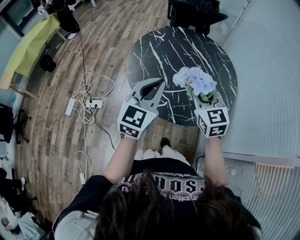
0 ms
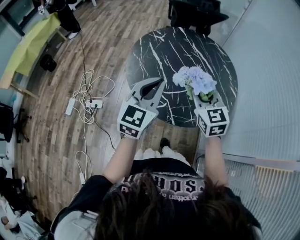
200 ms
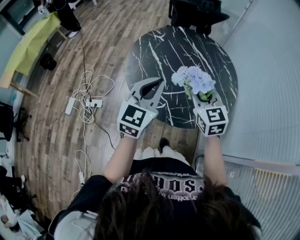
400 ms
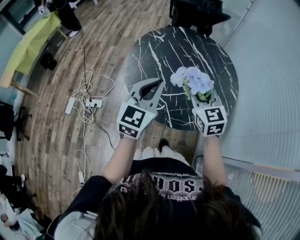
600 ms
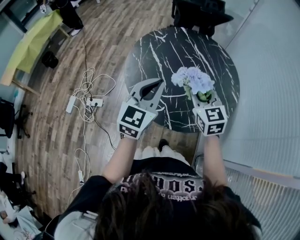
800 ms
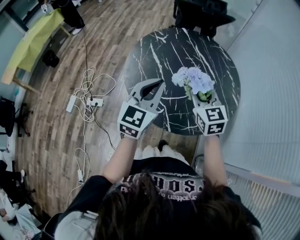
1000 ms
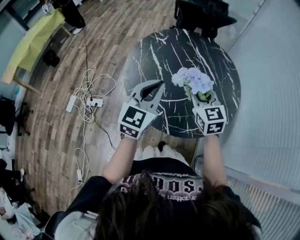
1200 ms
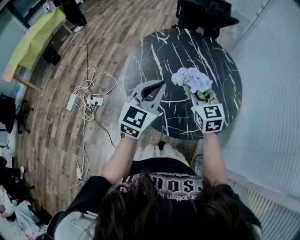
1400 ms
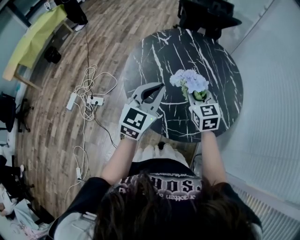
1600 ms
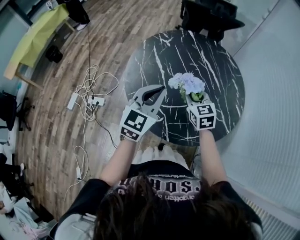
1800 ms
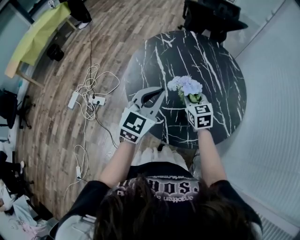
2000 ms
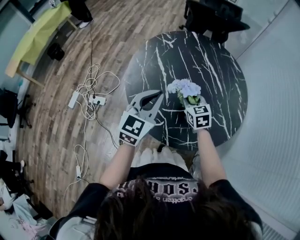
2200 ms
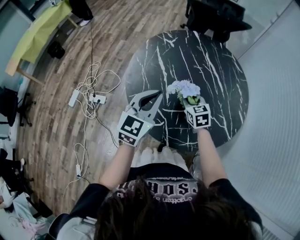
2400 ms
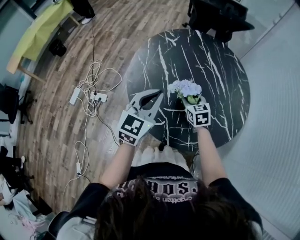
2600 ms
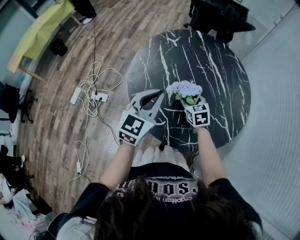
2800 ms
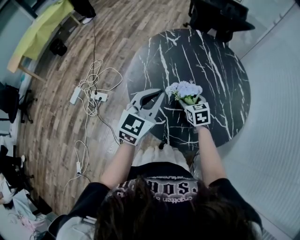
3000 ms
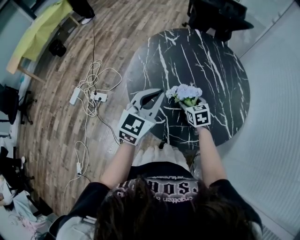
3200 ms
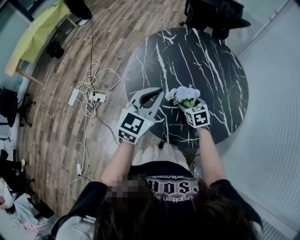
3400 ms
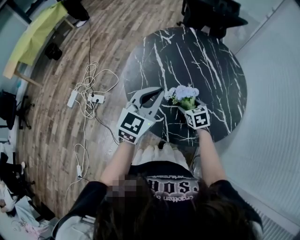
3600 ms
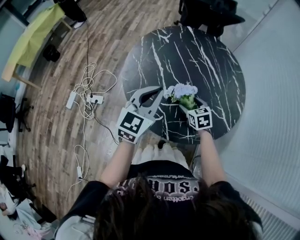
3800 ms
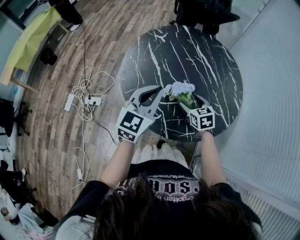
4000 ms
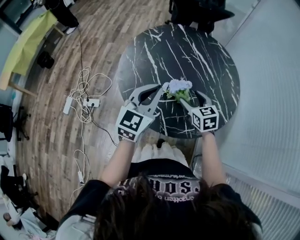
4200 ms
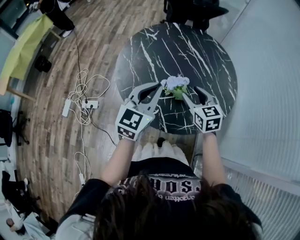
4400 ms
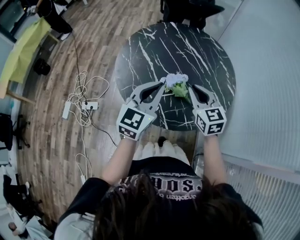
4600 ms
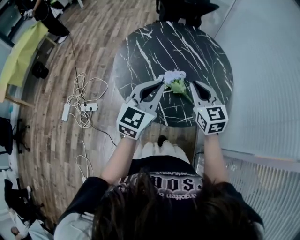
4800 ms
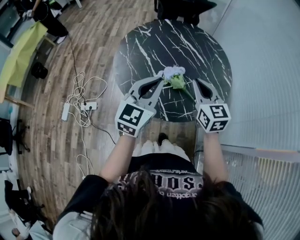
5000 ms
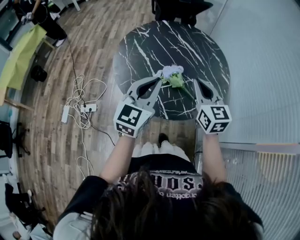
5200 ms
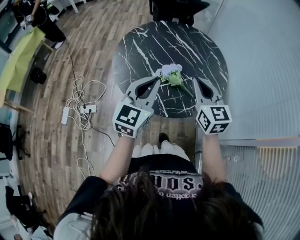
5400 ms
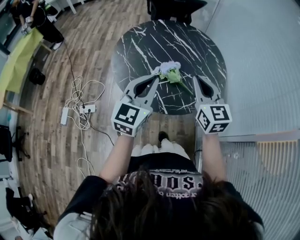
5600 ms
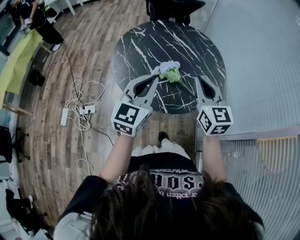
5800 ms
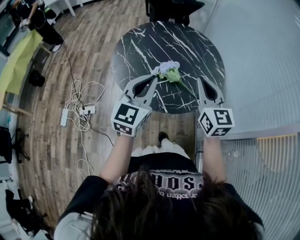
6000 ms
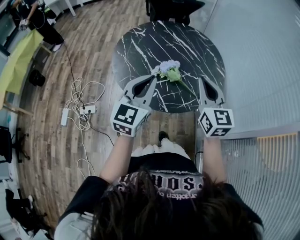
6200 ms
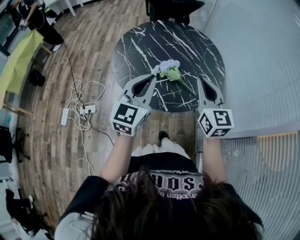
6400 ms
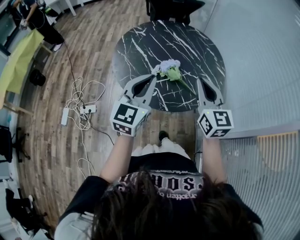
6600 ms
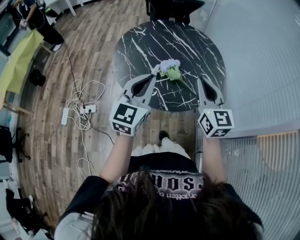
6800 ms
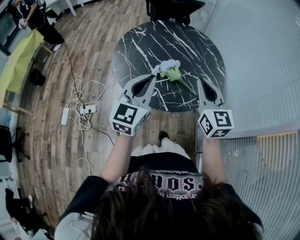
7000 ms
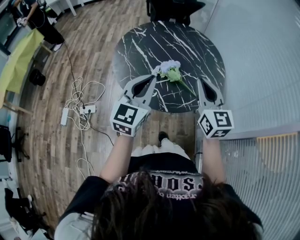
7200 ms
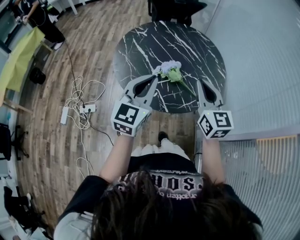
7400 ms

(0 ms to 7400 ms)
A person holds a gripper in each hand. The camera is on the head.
0 ms - 1400 ms: The grippers both shift forward by about 10 cm.
1400 ms - 3000 ms: The left gripper ends up roughly 5 cm from where it was. Meanwhile the right gripper is displaced downward by some 20 cm, turns by approximately 20 degrees, and opens.
3000 ms - 4400 ms: The right gripper travels upward and backward by about 15 cm. Meanwhile the left gripper shifts by approximately 5 cm.
4400 ms - 6000 ms: The right gripper goes approximately 20 cm upward and backward, changes its angle by about 30 degrees, and closes up. Meanwhile the left gripper shifts approximately 10 cm backward.
6000 ms - 7400 ms: Neither gripper changes place.

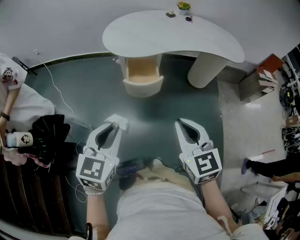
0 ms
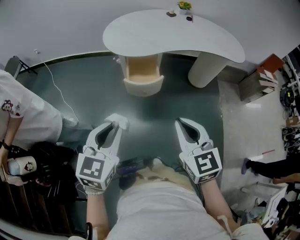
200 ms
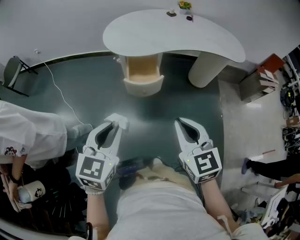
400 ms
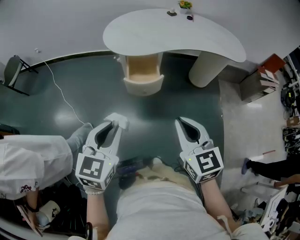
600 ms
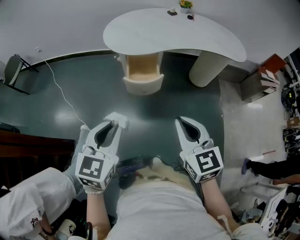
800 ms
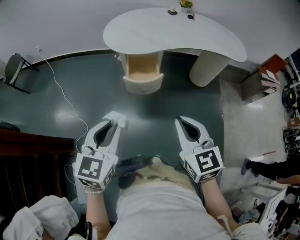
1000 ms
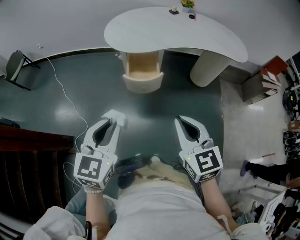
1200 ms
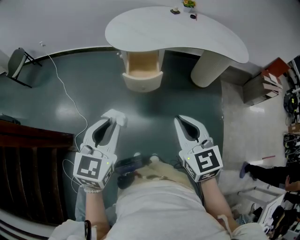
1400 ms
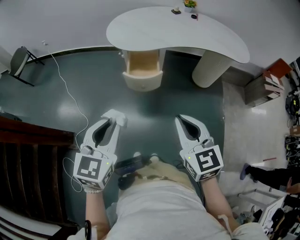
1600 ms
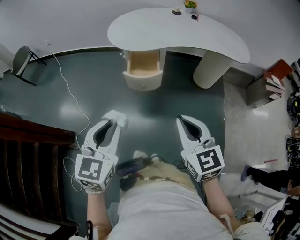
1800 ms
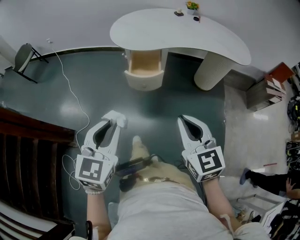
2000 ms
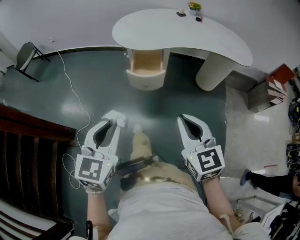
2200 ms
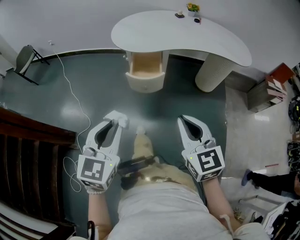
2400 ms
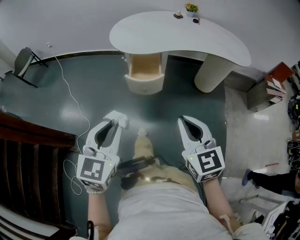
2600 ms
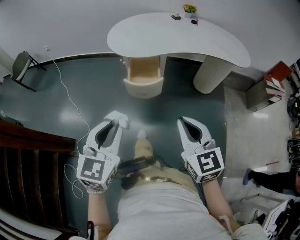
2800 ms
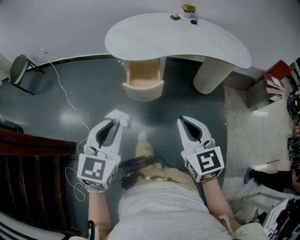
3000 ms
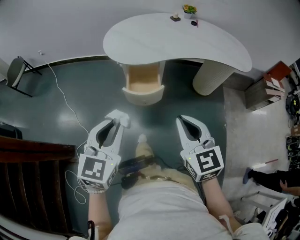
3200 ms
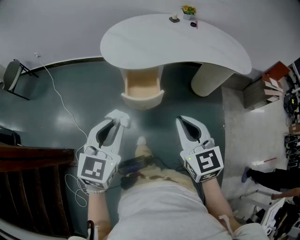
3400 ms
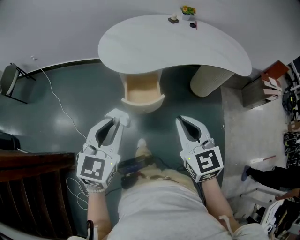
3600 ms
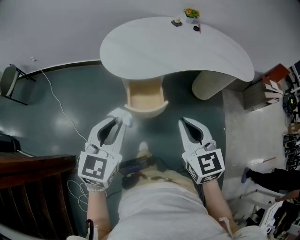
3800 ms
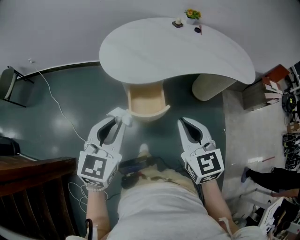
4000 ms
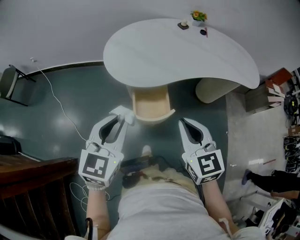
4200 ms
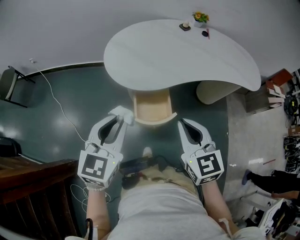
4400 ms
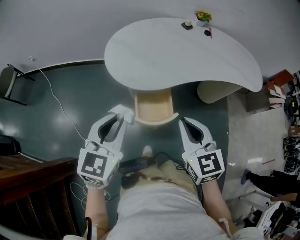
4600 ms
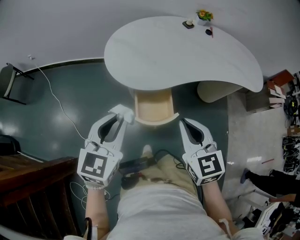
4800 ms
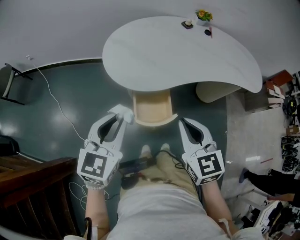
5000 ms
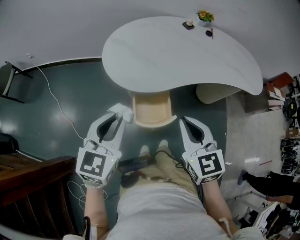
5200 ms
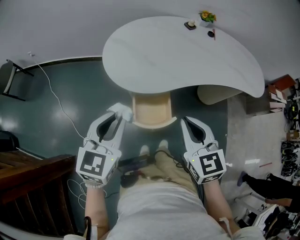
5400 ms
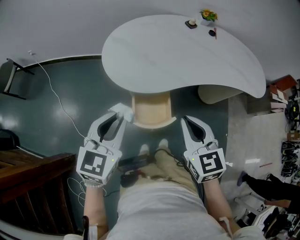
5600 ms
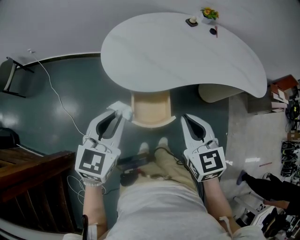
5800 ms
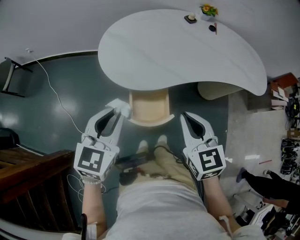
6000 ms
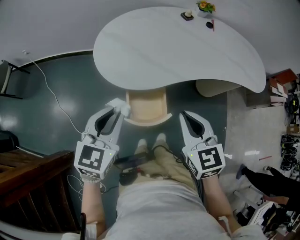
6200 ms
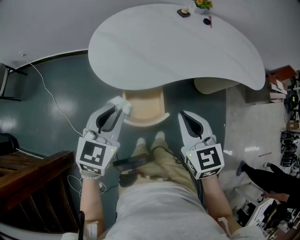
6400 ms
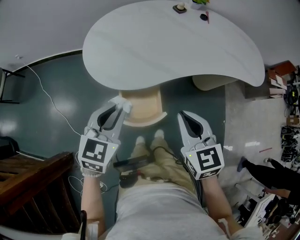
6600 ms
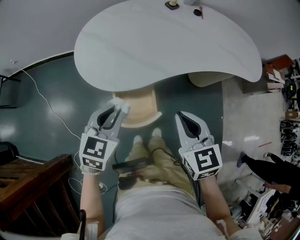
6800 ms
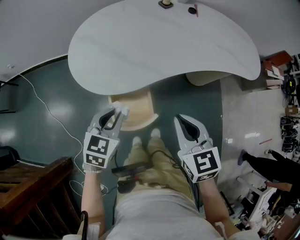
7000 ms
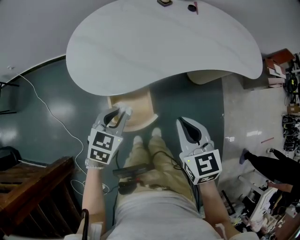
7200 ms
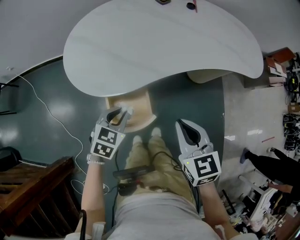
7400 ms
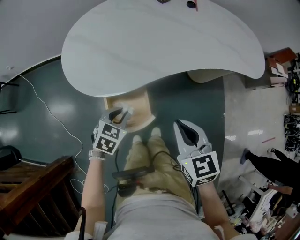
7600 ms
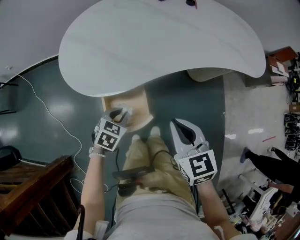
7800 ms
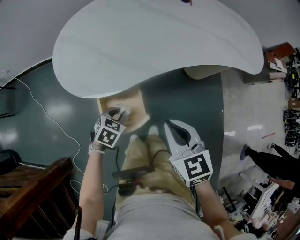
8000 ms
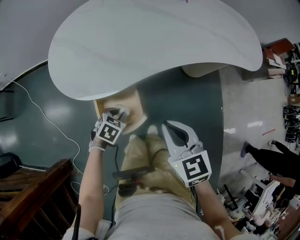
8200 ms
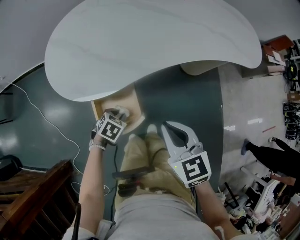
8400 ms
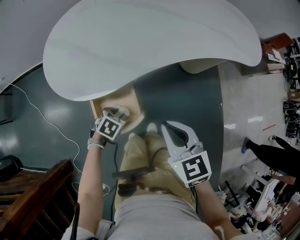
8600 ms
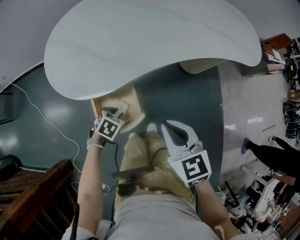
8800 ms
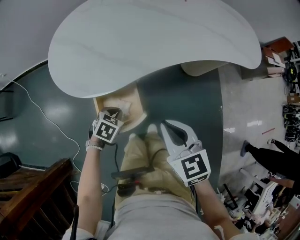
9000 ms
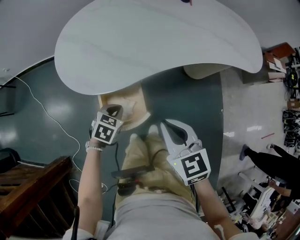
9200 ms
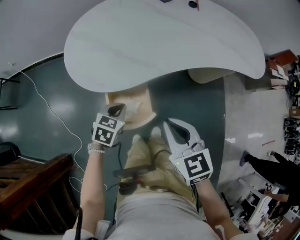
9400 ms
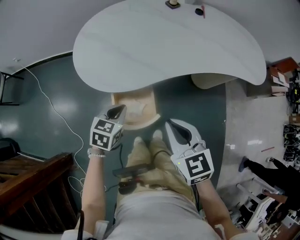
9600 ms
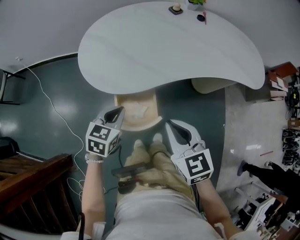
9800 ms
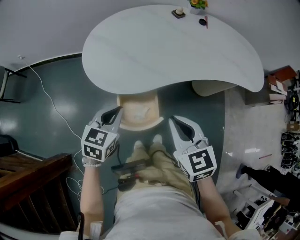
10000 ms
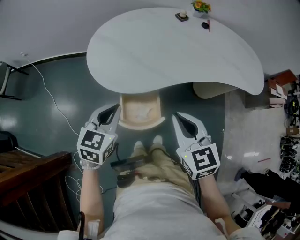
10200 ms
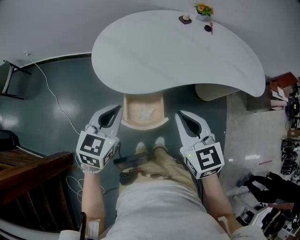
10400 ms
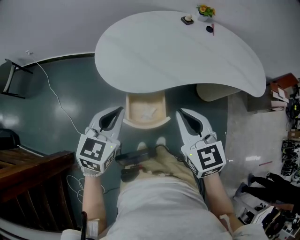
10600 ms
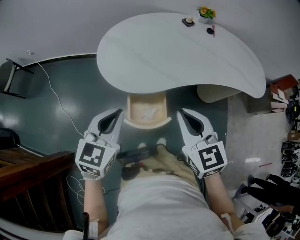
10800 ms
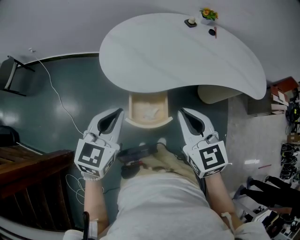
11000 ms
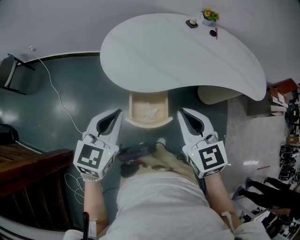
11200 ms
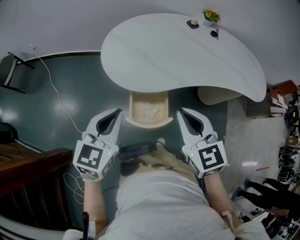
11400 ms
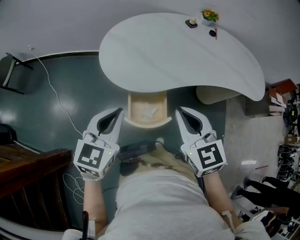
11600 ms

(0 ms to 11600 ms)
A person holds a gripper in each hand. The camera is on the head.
0 ms - 1400 ms: The grippers stay close to where they were, moving slightly.
1400 ms - 2800 ms: There are only small adjustments of the grippers.
2800 ms - 4400 ms: Both grippers travel together forward, roughly 25 cm.
4400 ms - 5800 ms: The grippers both shift forward by some 5 cm.
5800 ms - 7200 ms: The left gripper travels downward and to the right by some 20 cm, and turns by approximately 20 degrees. Meanwhile the right gripper shifts roughly 10 cm to the right and downward.
7200 ms - 8800 ms: The right gripper goes about 5 cm downward; the left gripper is displaced downward by approximately 20 cm, and turns by some 30 degrees.
8800 ms - 10200 ms: The left gripper travels upward by roughly 30 cm, tips its fingers upward by some 40 degrees, and closes. The right gripper is displaced upward and to the left by some 10 cm.
10200 ms - 11600 ms: The right gripper shifts by about 5 cm. Meanwhile the left gripper is displaced upward by about 5 cm.

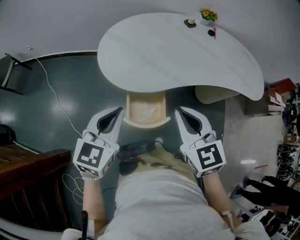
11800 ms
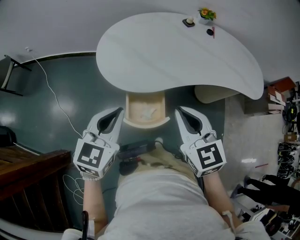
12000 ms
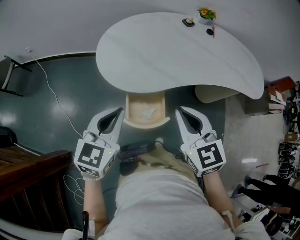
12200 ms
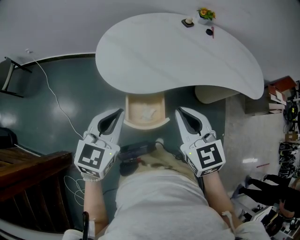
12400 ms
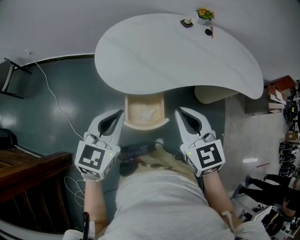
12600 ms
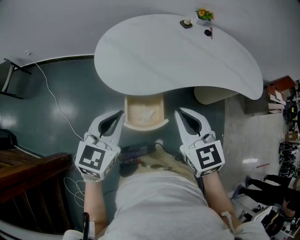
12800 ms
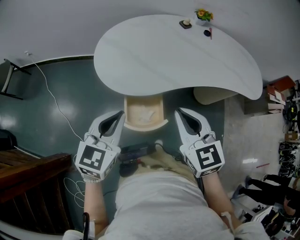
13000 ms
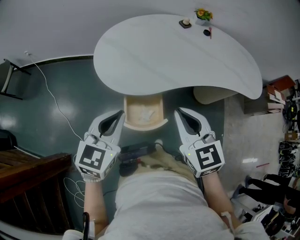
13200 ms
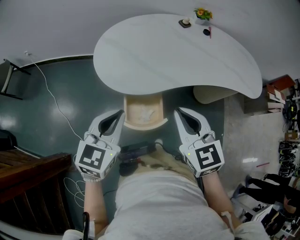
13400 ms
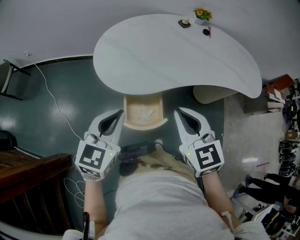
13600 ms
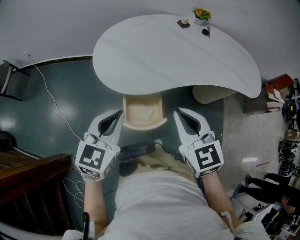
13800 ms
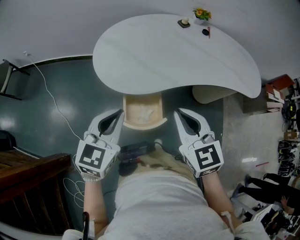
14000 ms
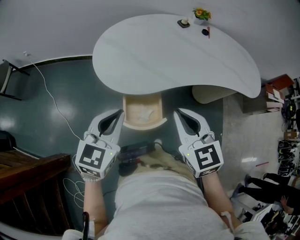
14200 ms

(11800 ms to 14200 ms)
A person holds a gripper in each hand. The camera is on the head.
11800 ms - 13000 ms: The grippers move only a little.
13000 ms - 14200 ms: Neither gripper changes place.

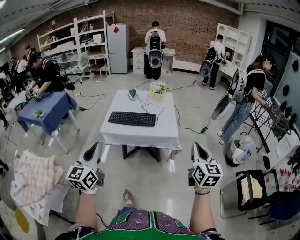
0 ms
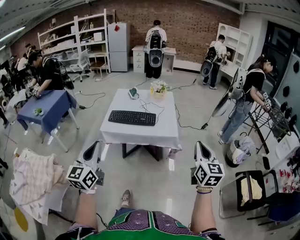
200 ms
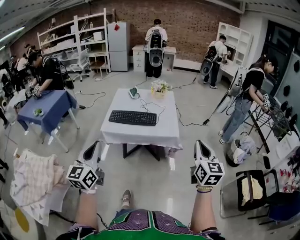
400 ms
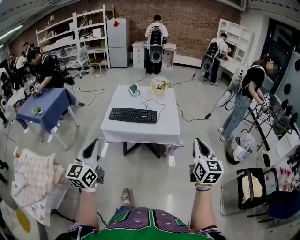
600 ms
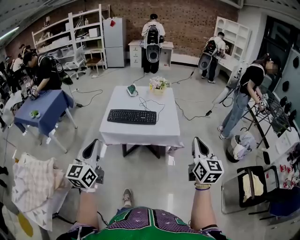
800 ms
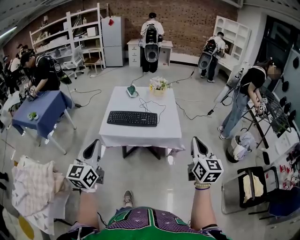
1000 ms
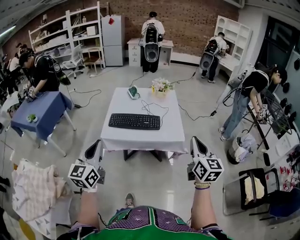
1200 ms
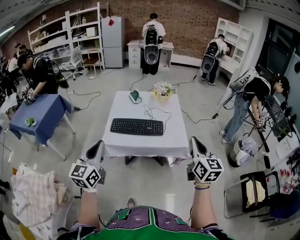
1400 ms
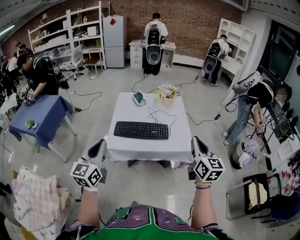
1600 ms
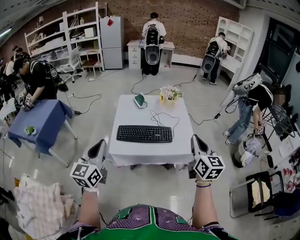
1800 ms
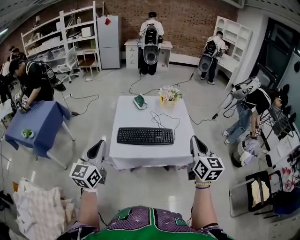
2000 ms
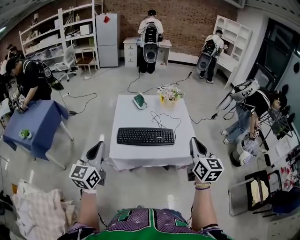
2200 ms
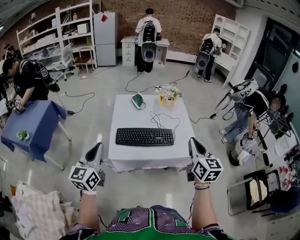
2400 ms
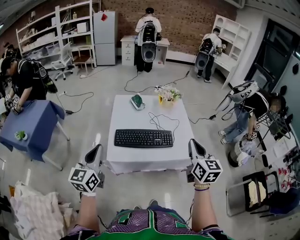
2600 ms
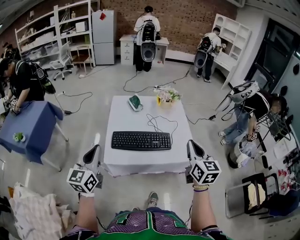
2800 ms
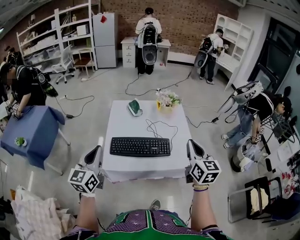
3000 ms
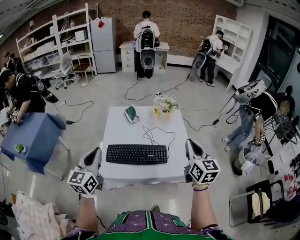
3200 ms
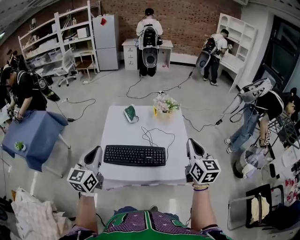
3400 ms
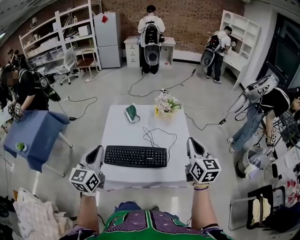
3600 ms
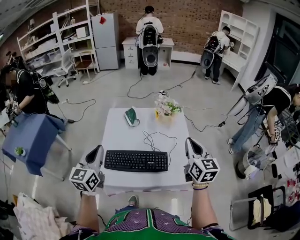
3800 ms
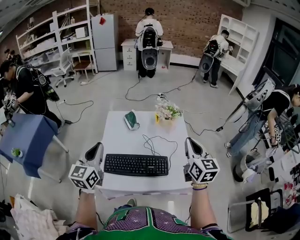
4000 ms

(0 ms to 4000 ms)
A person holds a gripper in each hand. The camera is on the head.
0 ms - 1400 ms: The two grippers go roughly 20 cm forward and to the left.
1400 ms - 2600 ms: The grippers both shift forward and to the left by some 20 cm.
2600 ms - 4000 ms: The grippers both shift forward by about 25 cm.
